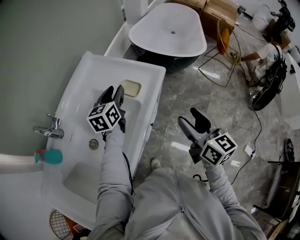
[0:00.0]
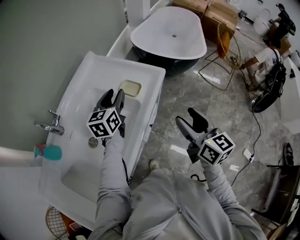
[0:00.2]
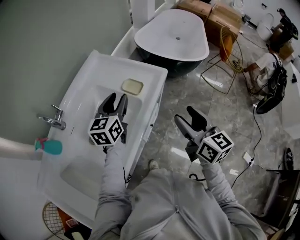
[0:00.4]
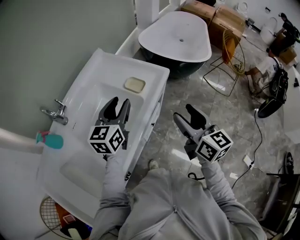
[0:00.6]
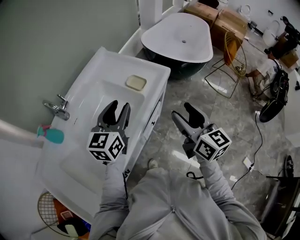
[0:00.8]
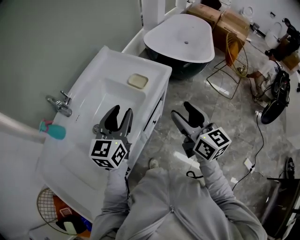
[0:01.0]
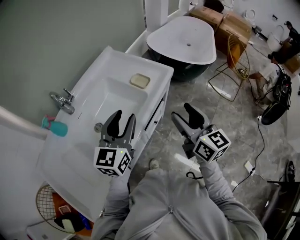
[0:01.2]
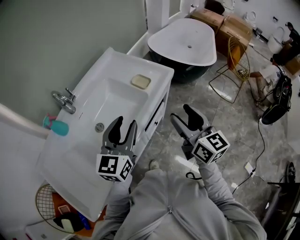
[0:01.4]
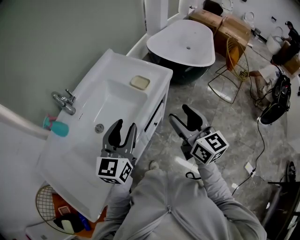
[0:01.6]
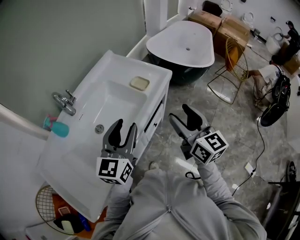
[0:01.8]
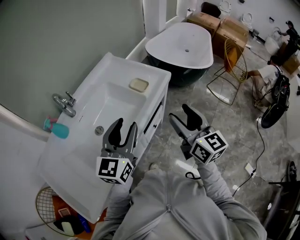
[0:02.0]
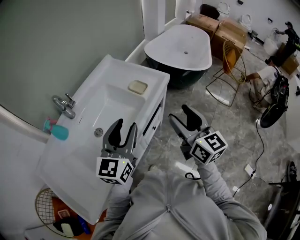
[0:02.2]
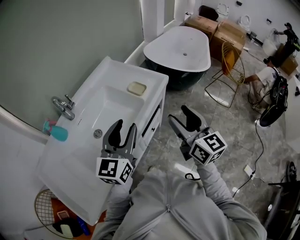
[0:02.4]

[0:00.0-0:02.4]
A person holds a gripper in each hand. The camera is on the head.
0:00.0 to 0:01.2: The left gripper shifts some 25 cm backward and upward. Meanwhile the right gripper shifts roughly 5 cm backward.
0:01.2 to 0:02.4: The grippers move only a little.

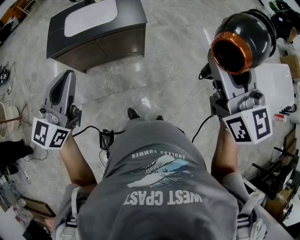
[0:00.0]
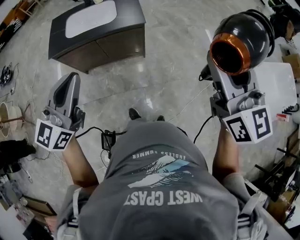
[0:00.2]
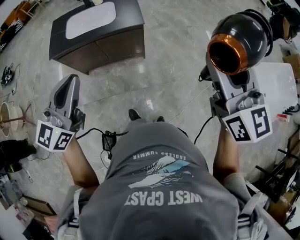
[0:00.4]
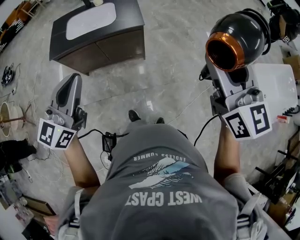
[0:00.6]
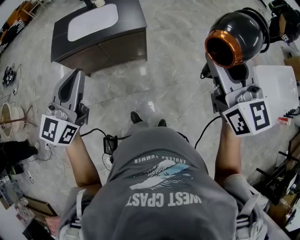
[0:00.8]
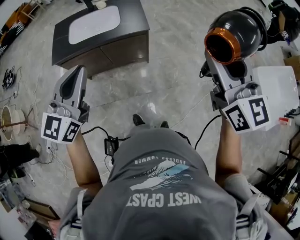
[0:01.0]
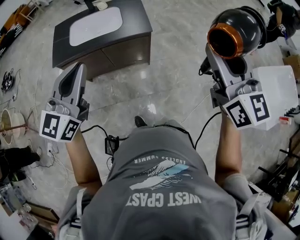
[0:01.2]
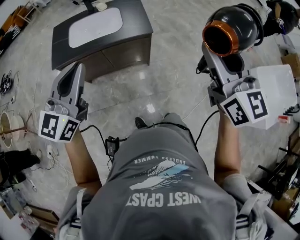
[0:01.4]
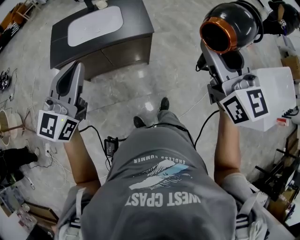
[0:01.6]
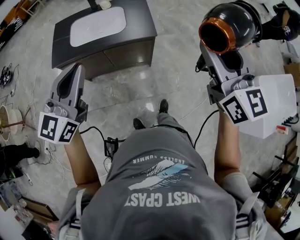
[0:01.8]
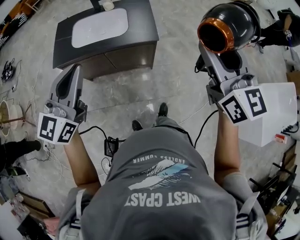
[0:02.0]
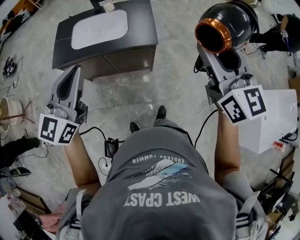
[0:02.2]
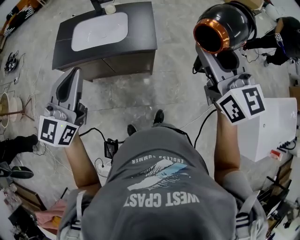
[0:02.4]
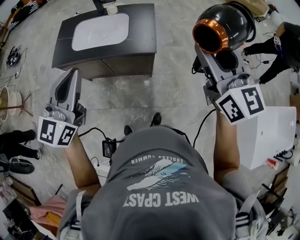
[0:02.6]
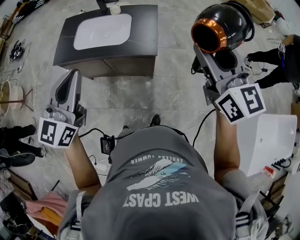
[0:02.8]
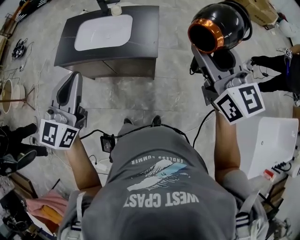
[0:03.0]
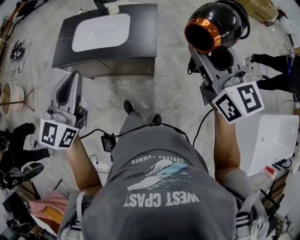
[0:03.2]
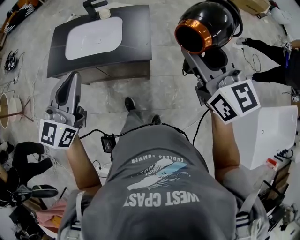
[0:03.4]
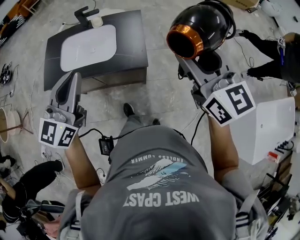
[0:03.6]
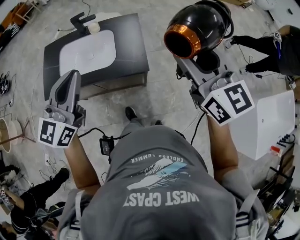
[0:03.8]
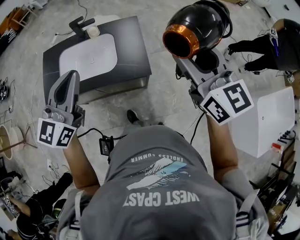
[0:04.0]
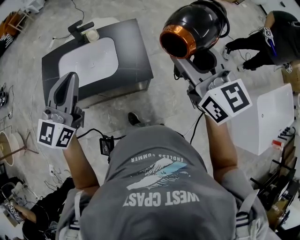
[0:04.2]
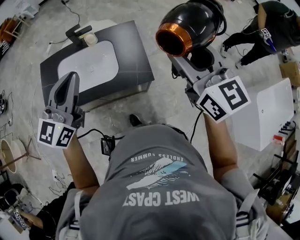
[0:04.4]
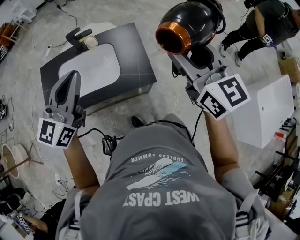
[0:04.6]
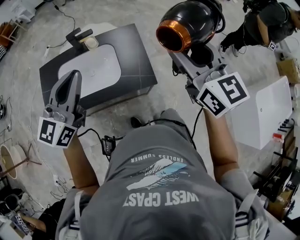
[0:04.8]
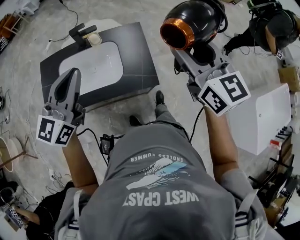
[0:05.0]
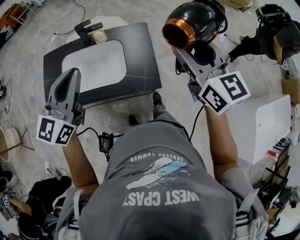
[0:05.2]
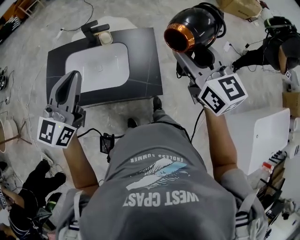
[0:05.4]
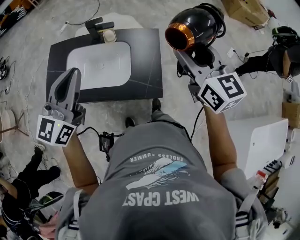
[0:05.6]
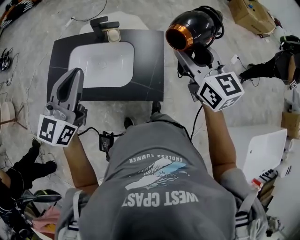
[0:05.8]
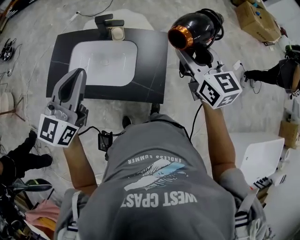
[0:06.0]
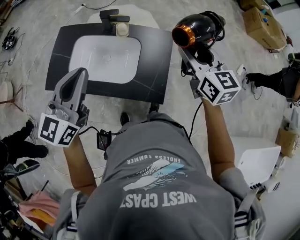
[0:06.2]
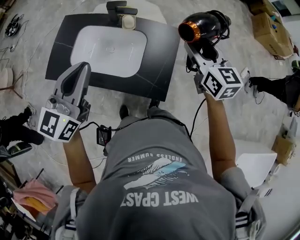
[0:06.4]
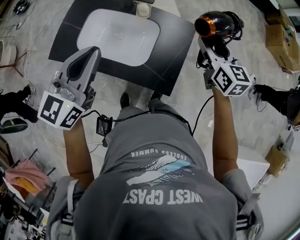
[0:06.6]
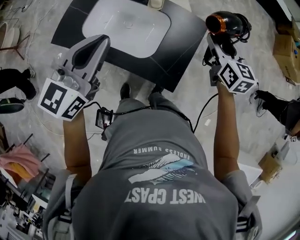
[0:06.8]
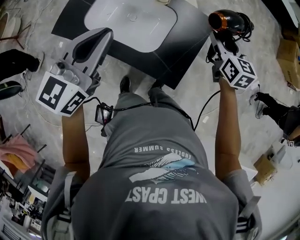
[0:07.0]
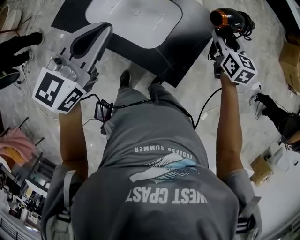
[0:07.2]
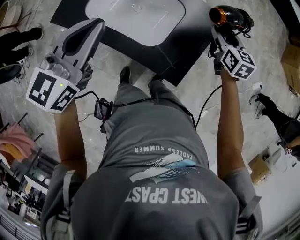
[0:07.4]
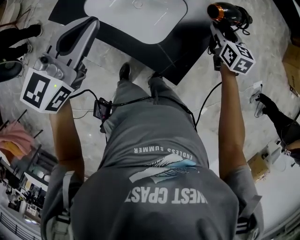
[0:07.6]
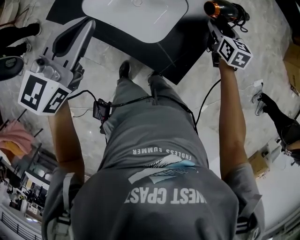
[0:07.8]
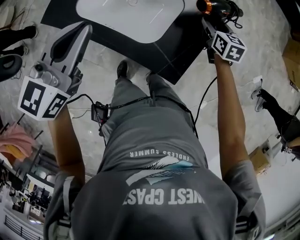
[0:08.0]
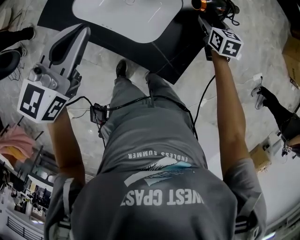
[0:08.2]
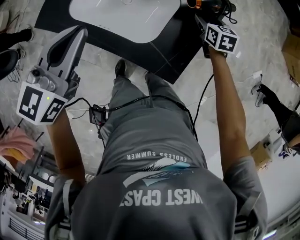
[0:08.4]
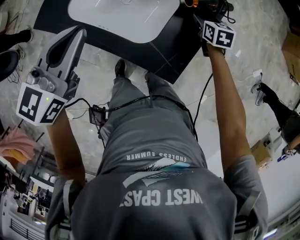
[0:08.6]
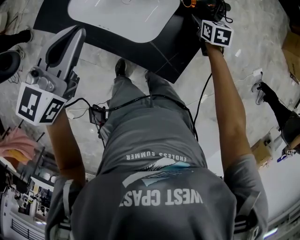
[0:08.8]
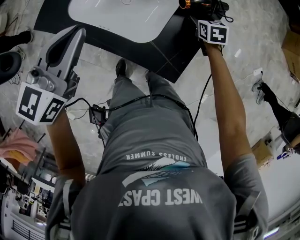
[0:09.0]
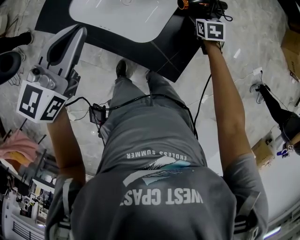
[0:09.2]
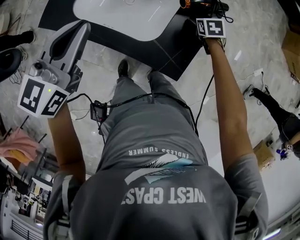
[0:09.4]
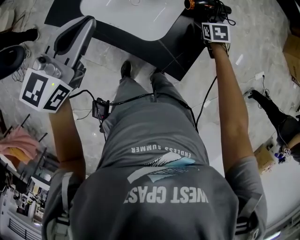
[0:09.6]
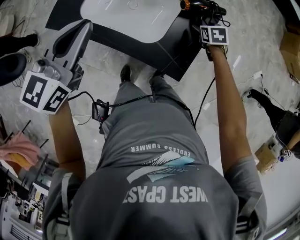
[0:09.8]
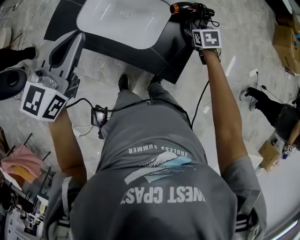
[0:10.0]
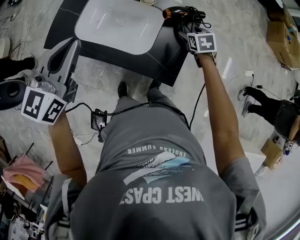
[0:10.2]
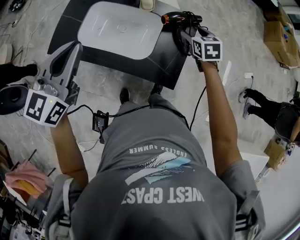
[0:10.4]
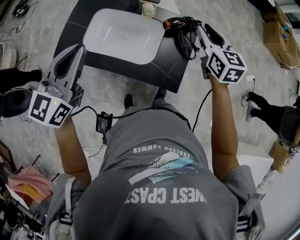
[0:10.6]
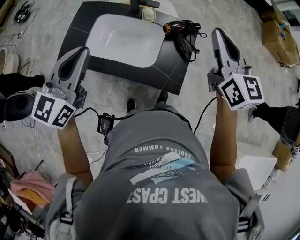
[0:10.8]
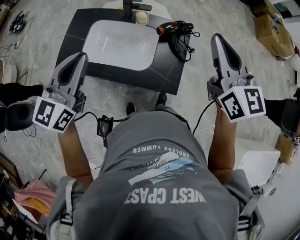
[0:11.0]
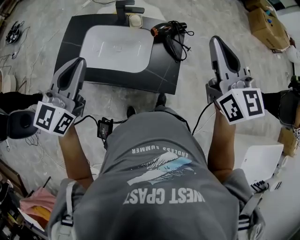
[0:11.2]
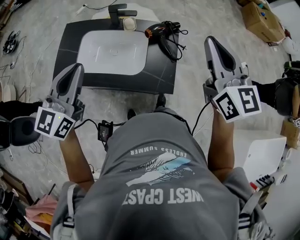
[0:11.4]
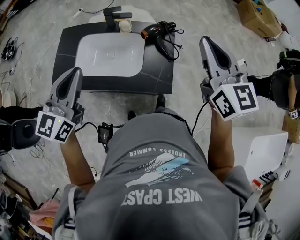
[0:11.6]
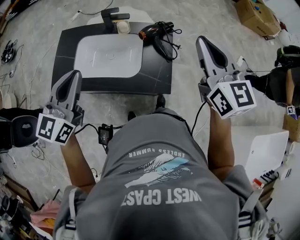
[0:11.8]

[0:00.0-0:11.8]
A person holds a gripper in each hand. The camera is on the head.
0:00.0 to 0:01.4: Both grippers travel together forward, some 5 cm.
0:01.4 to 0:03.0: The right gripper travels forward by roughly 25 cm, and rotates approximately 20 degrees. Meanwhile the left gripper travels forward and to the right by roughly 15 cm.
0:03.0 to 0:04.4: The left gripper shifts approximately 20 cm forward, and turns by roughly 20 degrees. The right gripper is displaced forward and to the left by roughly 15 cm.
0:04.4 to 0:06.0: The right gripper travels forward and downward by about 25 cm. The left gripper moves forward, roughly 10 cm.
0:06.0 to 0:07.4: The right gripper heads downward and forward, covering roughly 30 cm, and turns by roughly 20 degrees. Meanwhile the left gripper moves downward and to the left, about 10 cm.
0:07.4 to 0:08.8: The right gripper is displaced downward by roughly 15 cm, and turns by about 20 degrees.
0:08.8 to 0:10.4: The left gripper travels upward by approximately 10 cm; the right gripper is displaced upward and backward by some 15 cm.
0:10.4 to 0:11.8: The right gripper travels upward and backward by some 35 cm, tips its fingers upward by roughly 40 degrees, and closes its fingers; the left gripper moves upward, approximately 5 cm.

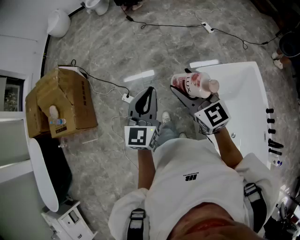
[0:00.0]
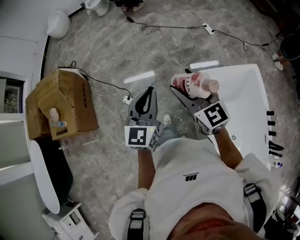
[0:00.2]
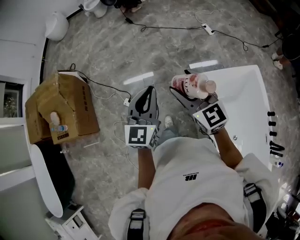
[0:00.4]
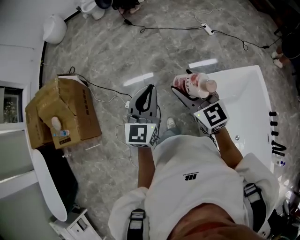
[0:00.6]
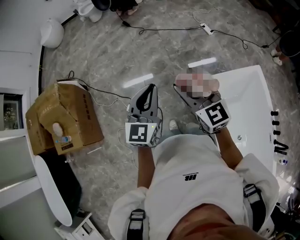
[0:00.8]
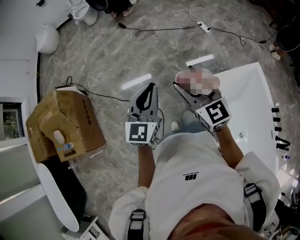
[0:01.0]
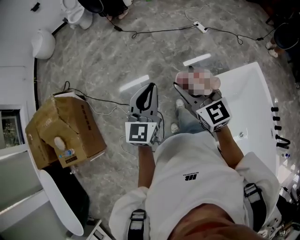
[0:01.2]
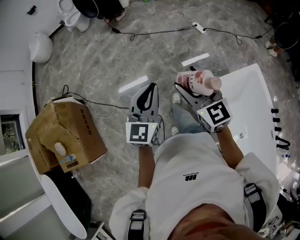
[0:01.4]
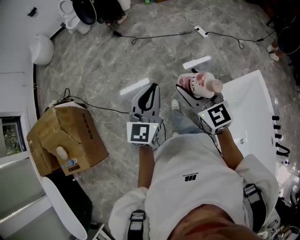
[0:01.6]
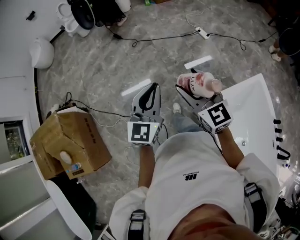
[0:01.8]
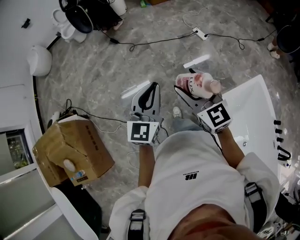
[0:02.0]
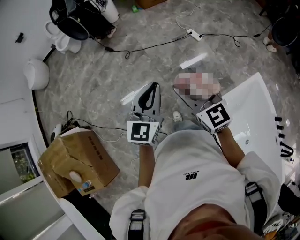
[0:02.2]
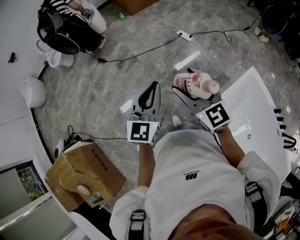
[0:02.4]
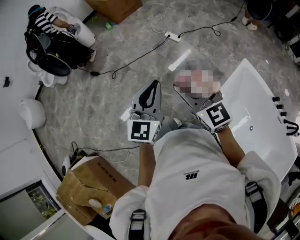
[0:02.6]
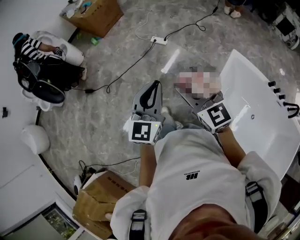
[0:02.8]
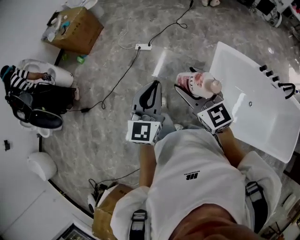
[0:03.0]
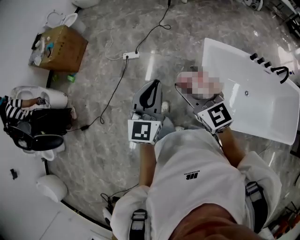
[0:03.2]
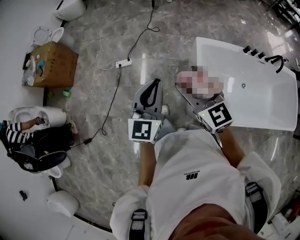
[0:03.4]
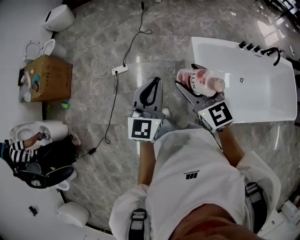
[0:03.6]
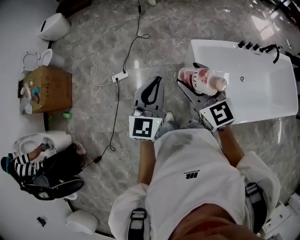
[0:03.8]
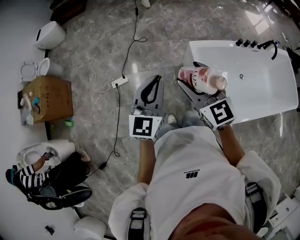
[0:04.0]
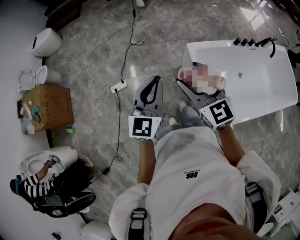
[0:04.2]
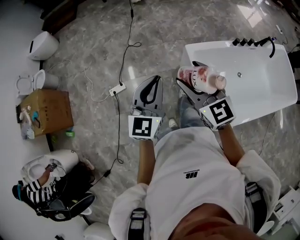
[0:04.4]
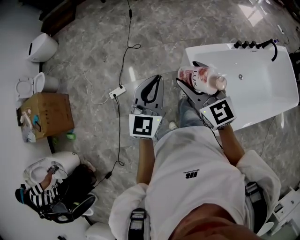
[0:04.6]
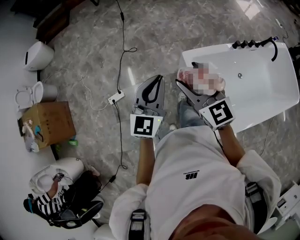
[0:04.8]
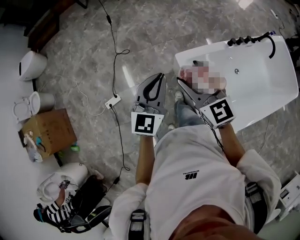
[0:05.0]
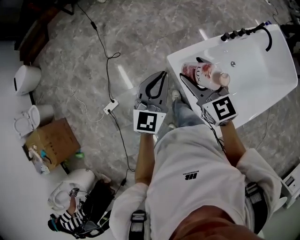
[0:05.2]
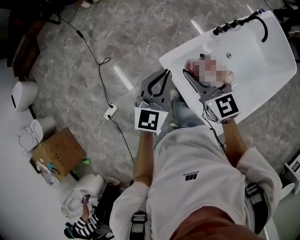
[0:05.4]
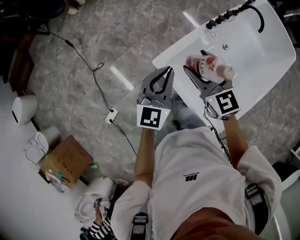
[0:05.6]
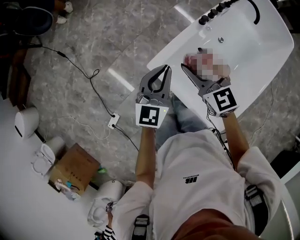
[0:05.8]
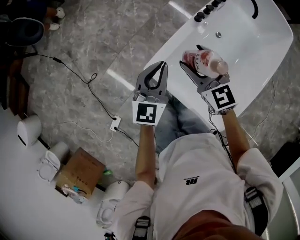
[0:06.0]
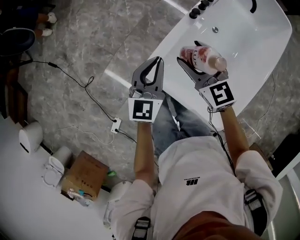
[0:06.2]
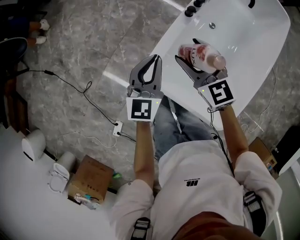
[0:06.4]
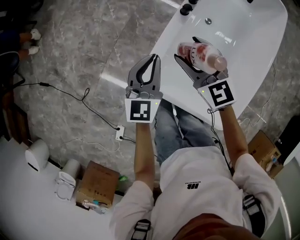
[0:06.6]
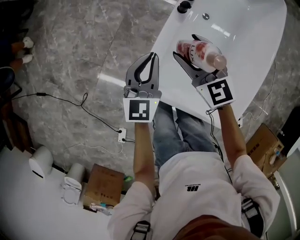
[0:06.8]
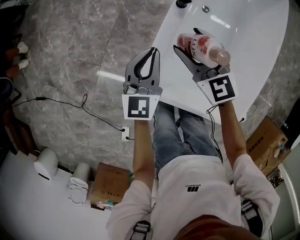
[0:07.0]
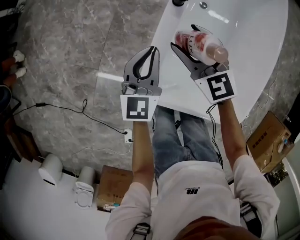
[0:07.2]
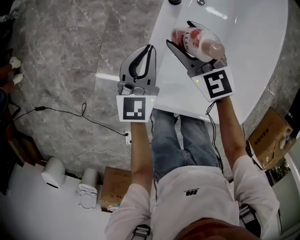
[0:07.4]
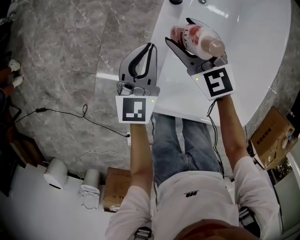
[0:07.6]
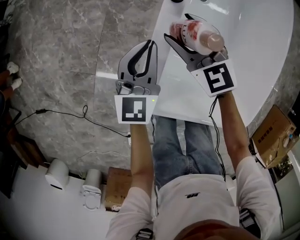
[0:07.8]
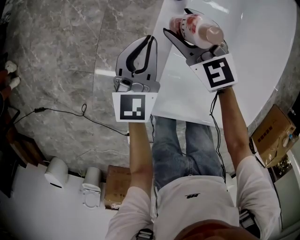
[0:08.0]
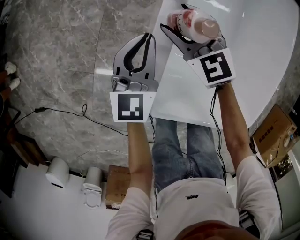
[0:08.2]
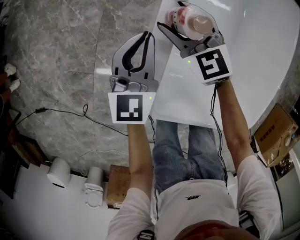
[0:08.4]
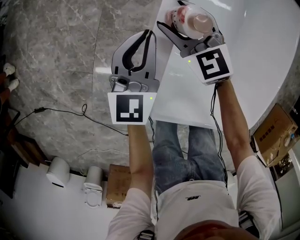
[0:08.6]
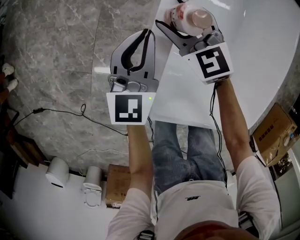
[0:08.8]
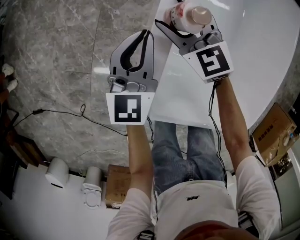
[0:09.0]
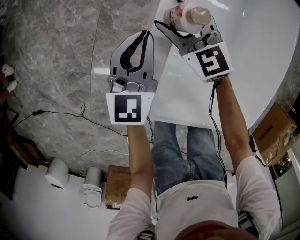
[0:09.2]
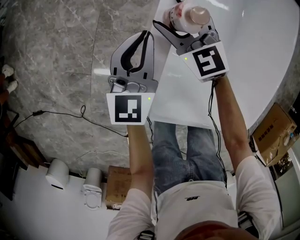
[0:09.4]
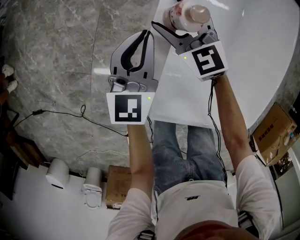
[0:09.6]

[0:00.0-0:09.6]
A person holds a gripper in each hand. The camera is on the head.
0:00.0 to 0:01.6: Both grippers move forward, about 30 cm.
0:01.6 to 0:03.2: The pair of grippers is taken approximately 40 cm. The left gripper turns by roughly 50 degrees; the right gripper rotates approximately 50 degrees.
0:03.2 to 0:04.8: The left gripper changes place by about 40 cm, and changes its angle by about 30 degrees, while the right gripper shifts by roughly 35 cm, and rotates approximately 30 degrees.
0:04.8 to 0:06.4: The pair of grippers is taken some 50 cm. The right gripper rotates approximately 40 degrees; the left gripper swivels roughly 40 degrees.
0:06.4 to 0:08.0: Both grippers move downward and forward, some 30 cm.
0:08.0 to 0:09.6: The right gripper is displaced downward by about 5 cm.
